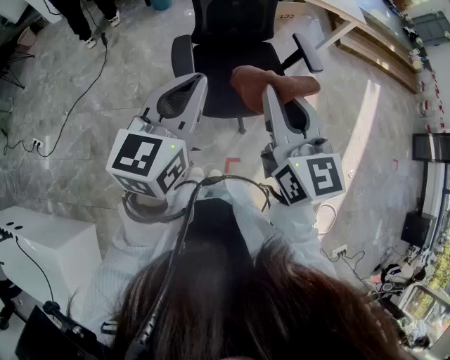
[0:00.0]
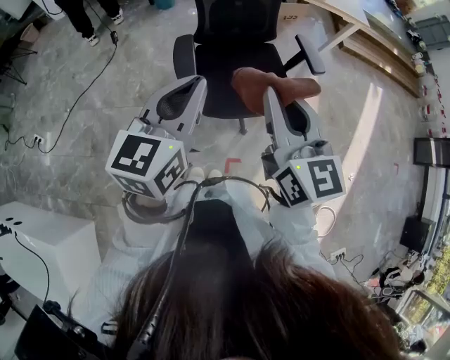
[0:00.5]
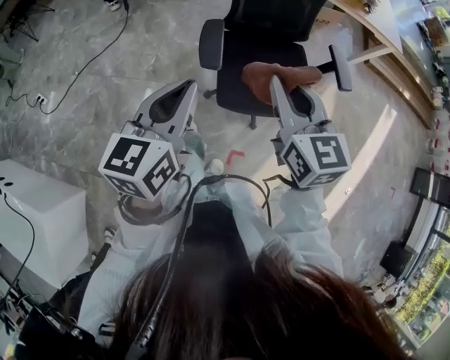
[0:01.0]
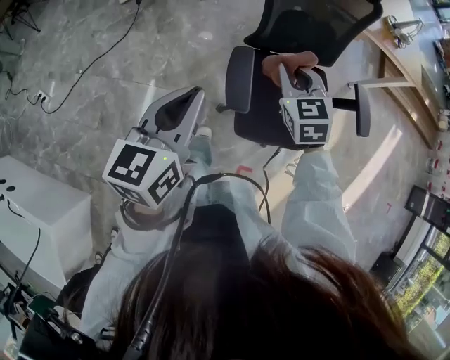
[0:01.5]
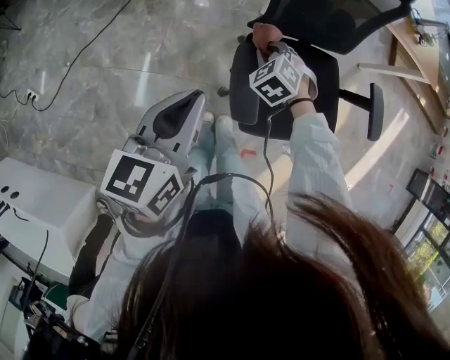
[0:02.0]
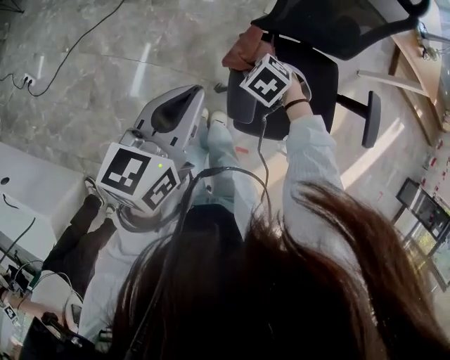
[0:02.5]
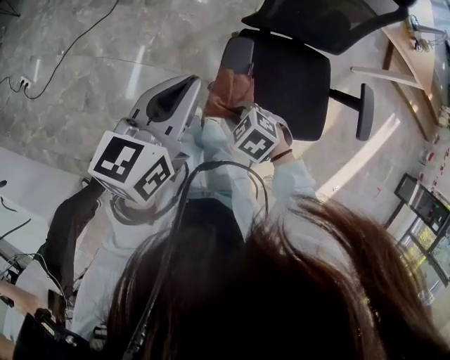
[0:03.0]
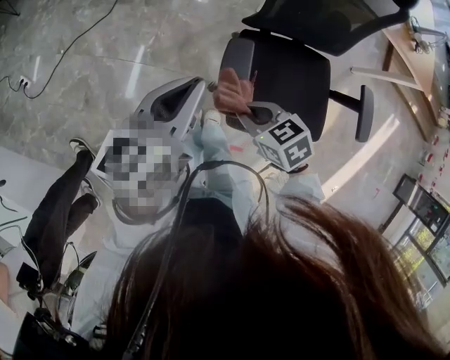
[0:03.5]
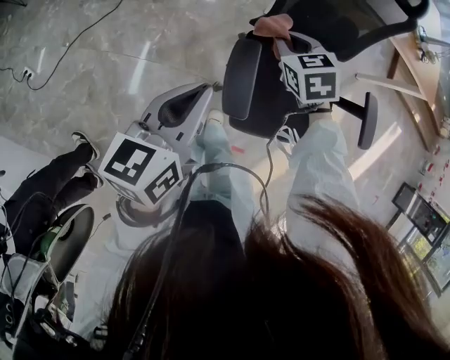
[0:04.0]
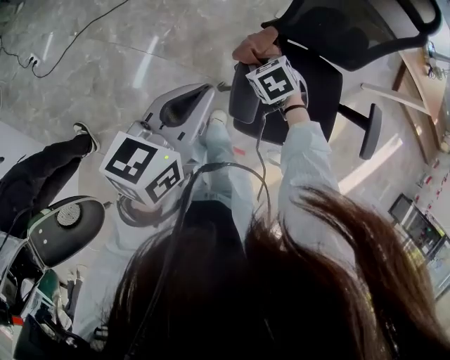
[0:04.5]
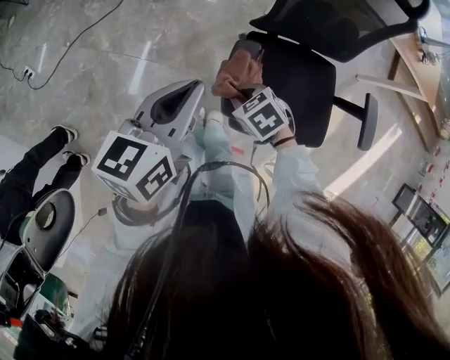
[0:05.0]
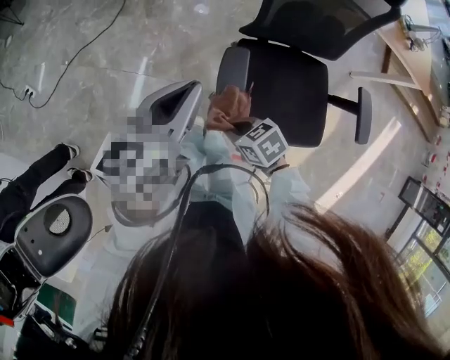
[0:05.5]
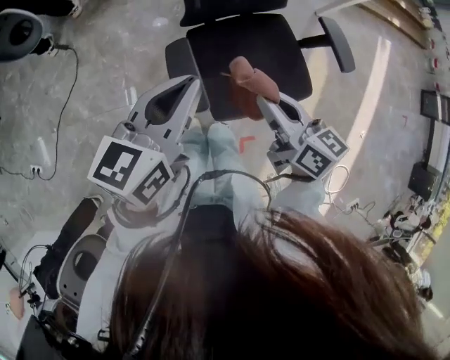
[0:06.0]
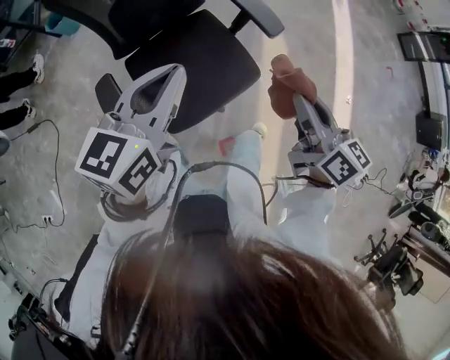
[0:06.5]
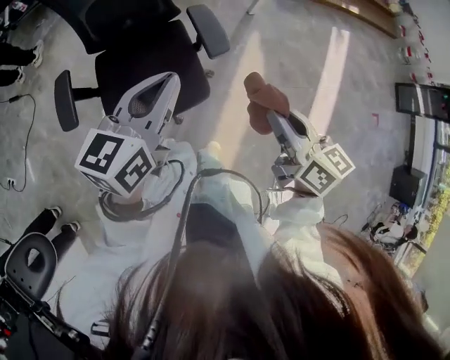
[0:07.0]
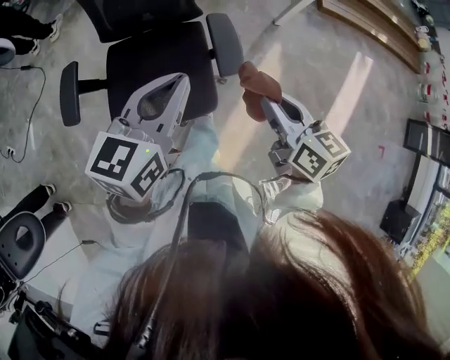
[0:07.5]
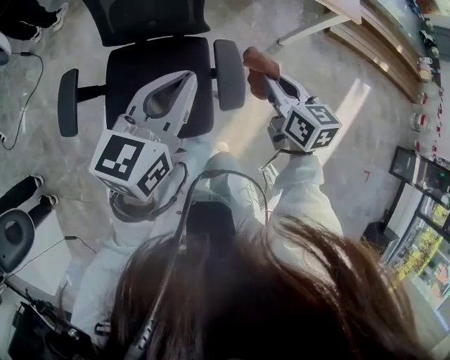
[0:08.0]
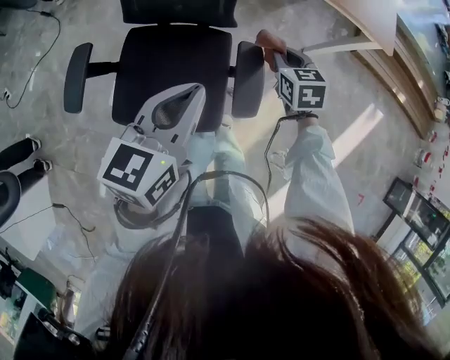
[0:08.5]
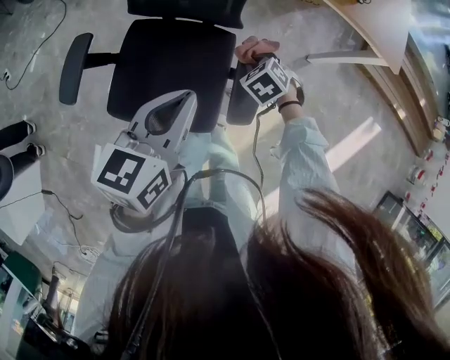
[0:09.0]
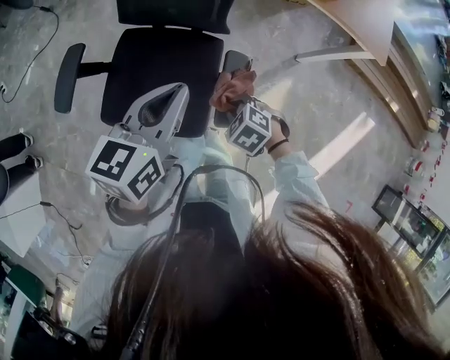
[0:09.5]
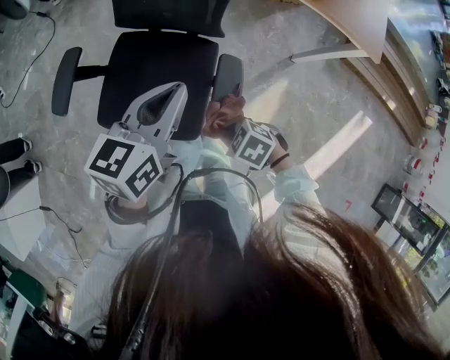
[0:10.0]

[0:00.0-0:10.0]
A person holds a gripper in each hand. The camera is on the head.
0:00.0 to 0:02.0: The left gripper heads forward, to the left and downward, covering some 40 cm, and changes its angle by some 30 degrees; the right gripper travels forward, downward and to the left by about 60 cm, and angles its fingers downward, by approximately 60 degrees.
0:02.0 to 0:04.0: The right gripper is displaced upward by roughly 10 cm, and turns by approximately 30 degrees.
0:04.0 to 0:06.0: The right gripper ends up some 25 cm from where it was, and twists roughly 50 degrees clockwise, seen from behind. Meanwhile the left gripper changes place by approximately 10 cm, and turns by some 30 degrees.
0:06.0 to 0:08.0: The two grippers travel together, some 60 cm.
0:08.0 to 0:10.0: The right gripper is displaced downward by roughly 15 cm, and tilts its fingers about 30 degrees downward, while the left gripper shifts by approximately 5 cm.

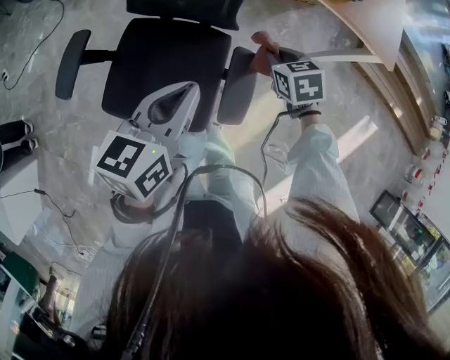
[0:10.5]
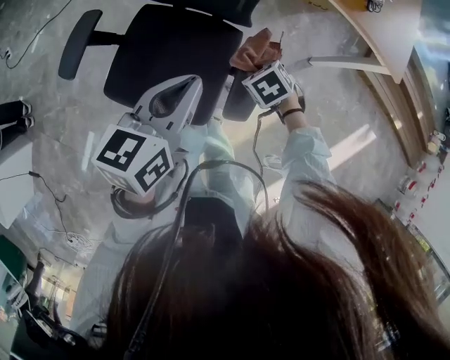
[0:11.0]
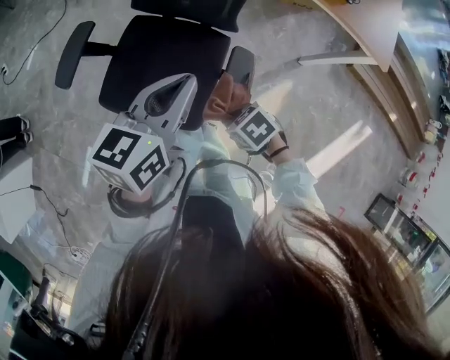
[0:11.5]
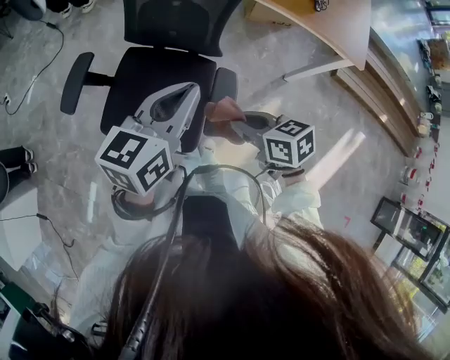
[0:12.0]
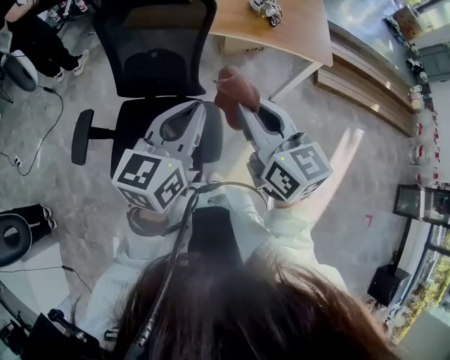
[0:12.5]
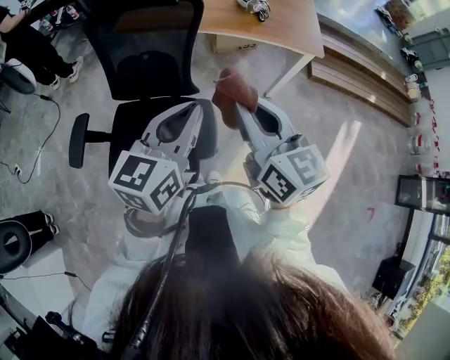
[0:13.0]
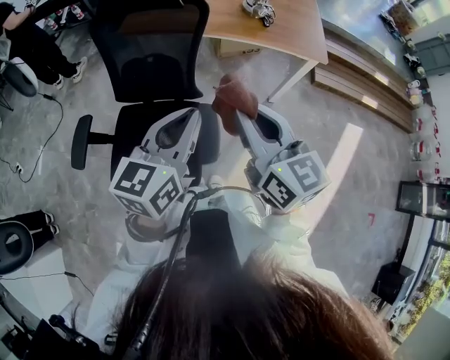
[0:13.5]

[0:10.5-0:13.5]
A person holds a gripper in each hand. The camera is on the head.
0:10.5 to 0:12.0: The left gripper goes approximately 5 cm upward. The right gripper moves approximately 20 cm, and changes its angle by some 30 degrees.
0:12.0 to 0:13.5: The left gripper shifts some 10 cm upward. Meanwhile the right gripper heads upward, covering roughly 25 cm, and angles its fingers upward, by about 30 degrees.

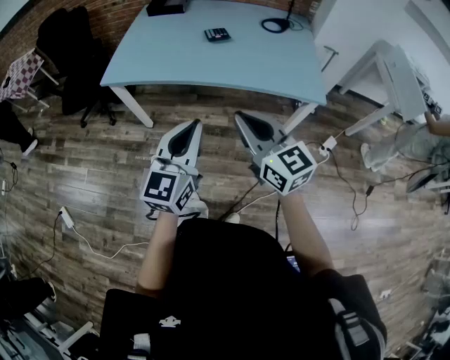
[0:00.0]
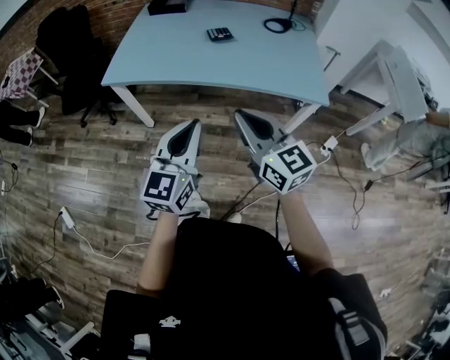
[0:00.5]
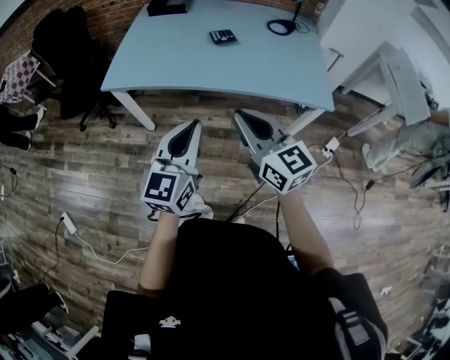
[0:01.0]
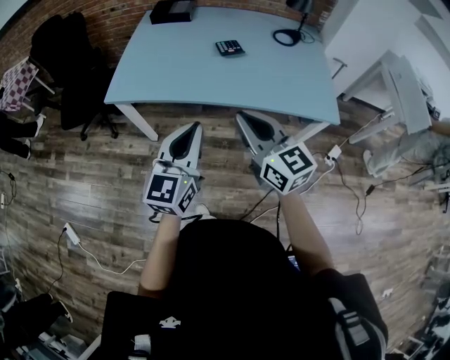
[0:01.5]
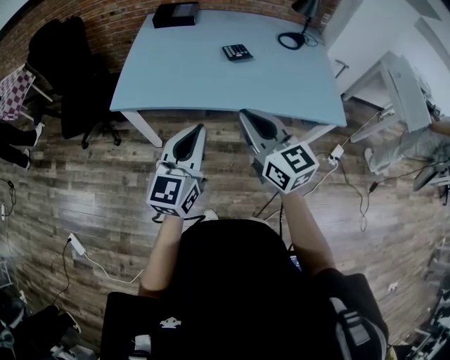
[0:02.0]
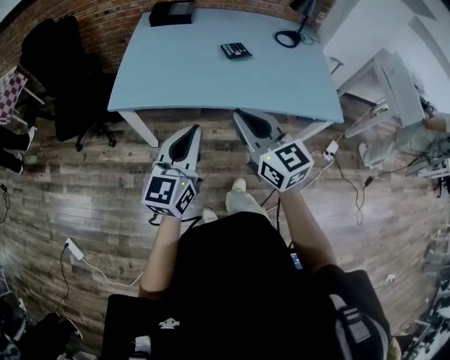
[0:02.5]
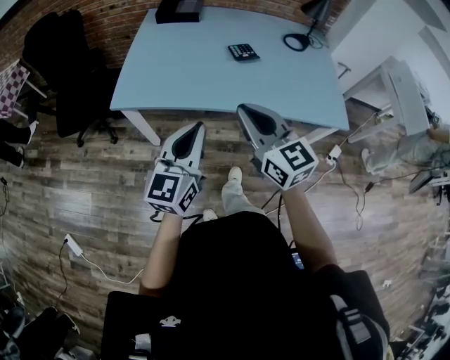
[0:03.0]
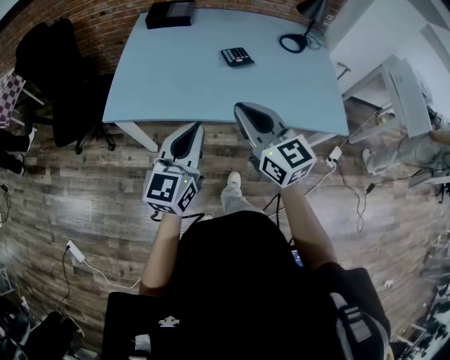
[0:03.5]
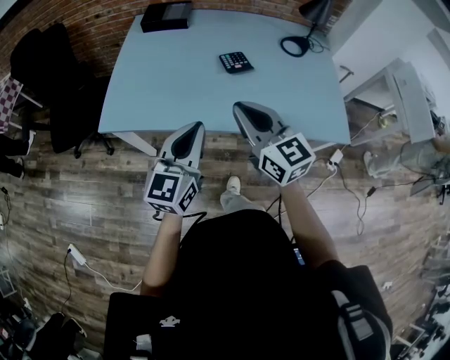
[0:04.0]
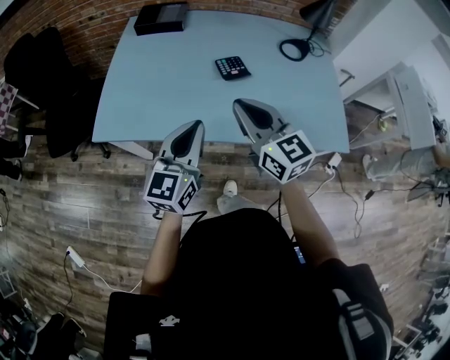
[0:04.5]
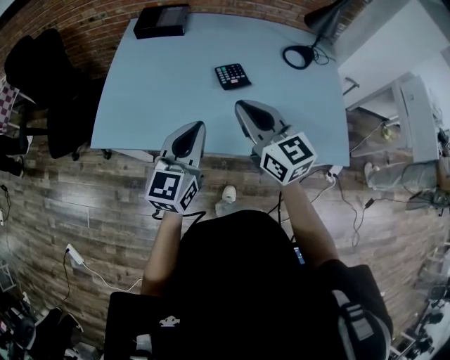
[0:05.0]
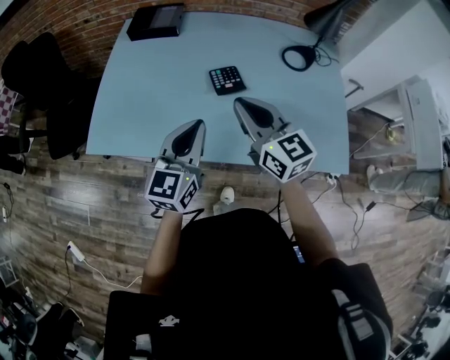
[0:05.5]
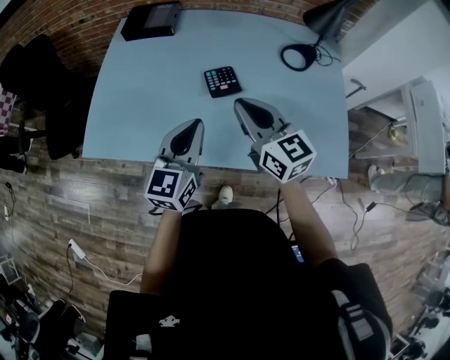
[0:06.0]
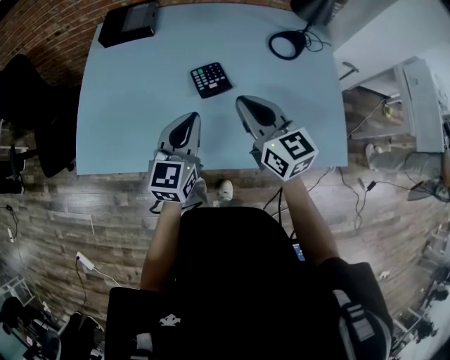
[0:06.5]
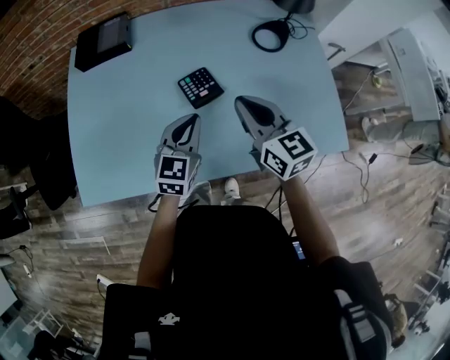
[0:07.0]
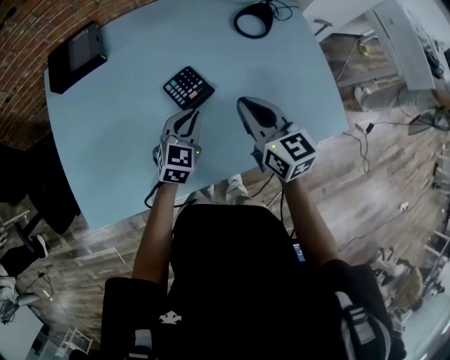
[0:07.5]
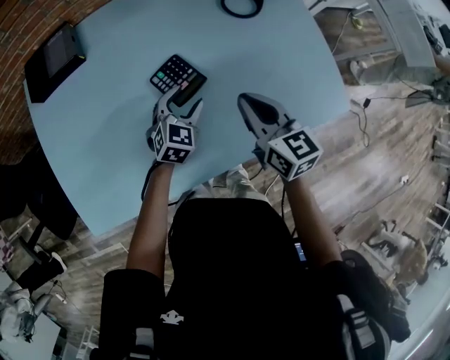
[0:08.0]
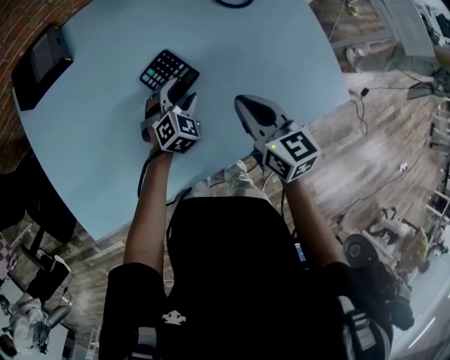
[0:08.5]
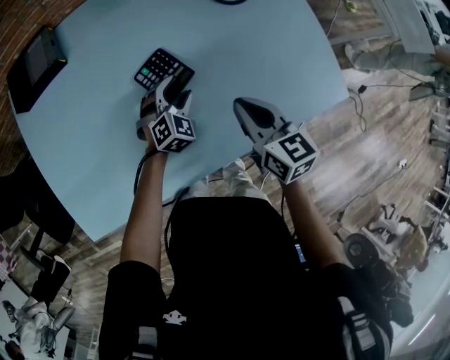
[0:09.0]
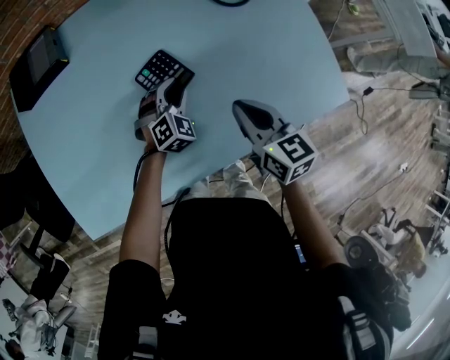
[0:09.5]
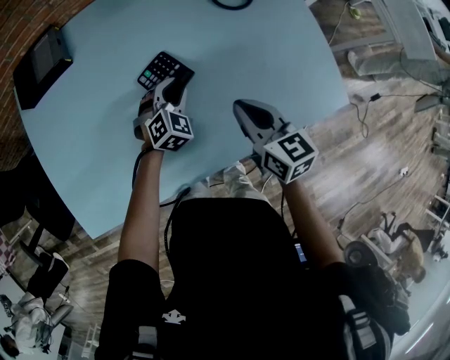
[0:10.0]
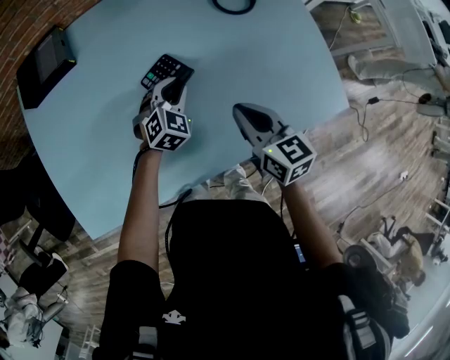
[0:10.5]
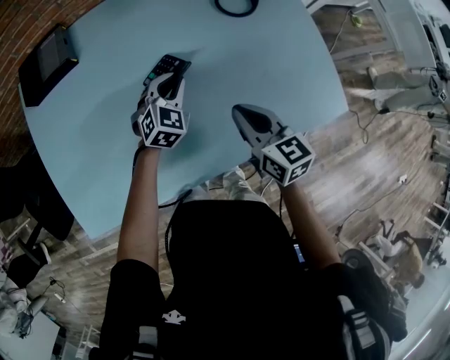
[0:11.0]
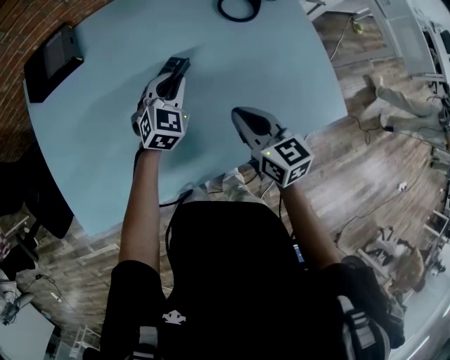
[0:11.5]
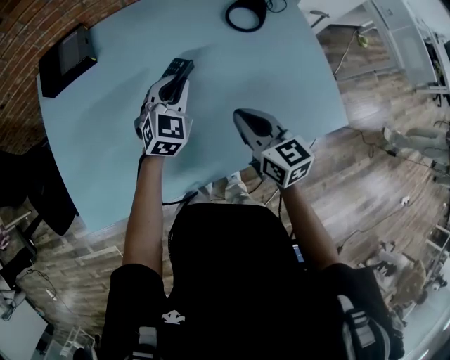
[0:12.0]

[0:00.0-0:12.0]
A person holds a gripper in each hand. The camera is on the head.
0:00.0 to 0:02.0: The two grippers go some 20 cm forward and to the left.
0:02.0 to 0:04.0: The grippers both shift forward by roughly 15 cm.
0:04.0 to 0:06.0: Both grippers travel together forward and to the right, roughly 20 cm.
0:06.0 to 0:08.0: The right gripper shifts about 10 cm downward, and changes its angle by about 40 degrees. The left gripper moves downward, about 20 cm, rotates some 50 degrees, and opens its fingers.
0:08.0 to 0:10.0: The left gripper turns by roughly 20 degrees, and closes up.
0:10.0 to 0:12.0: The left gripper travels upward by approximately 10 cm, and turns by about 20 degrees.

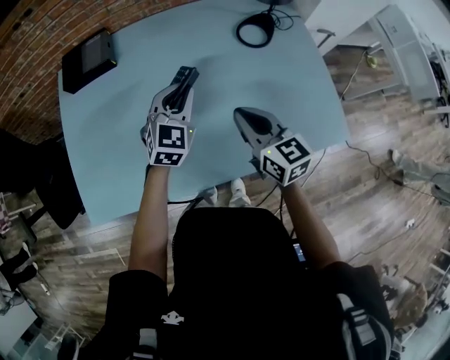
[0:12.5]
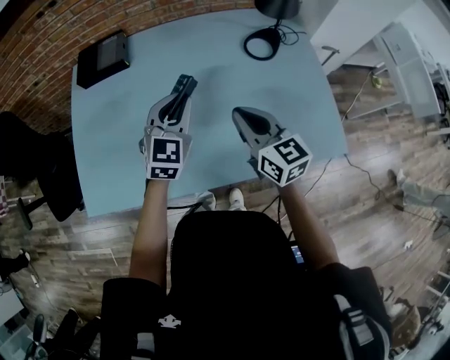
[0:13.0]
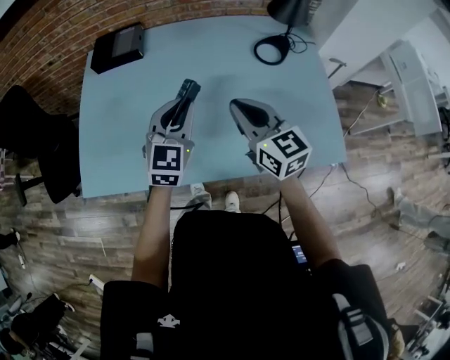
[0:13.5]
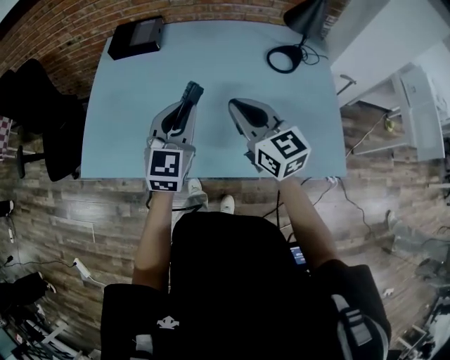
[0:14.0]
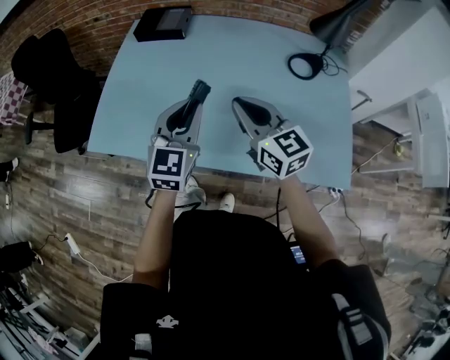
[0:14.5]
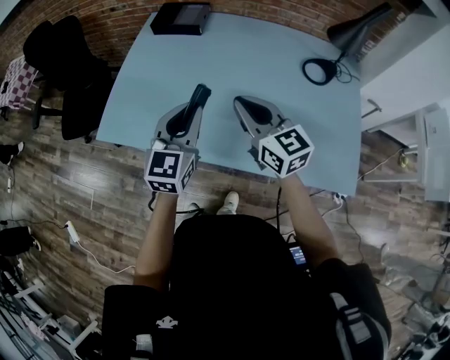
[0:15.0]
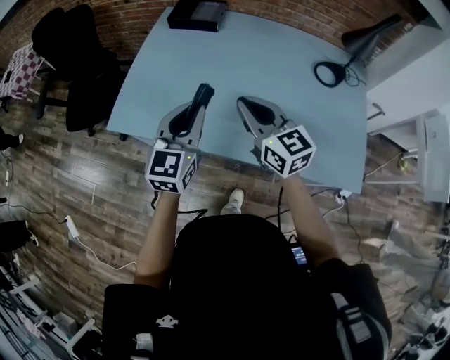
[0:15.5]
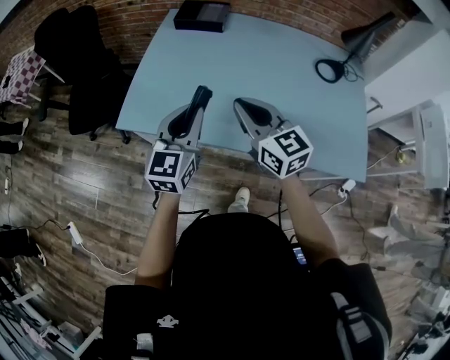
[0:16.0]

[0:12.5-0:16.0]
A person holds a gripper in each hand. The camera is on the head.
0:12.5 to 0:14.5: The left gripper moves backward, to the left and upward, about 20 cm, and changes its angle by some 30 degrees. Meanwhile the right gripper moves to the left and upward, about 10 cm, and rotates approximately 30 degrees.
0:14.5 to 0:16.0: The grippers both shift to the left by approximately 15 cm.
